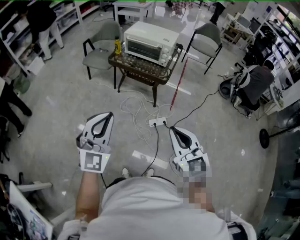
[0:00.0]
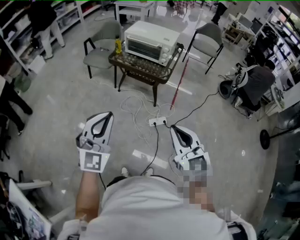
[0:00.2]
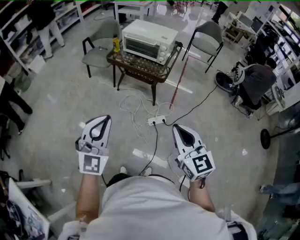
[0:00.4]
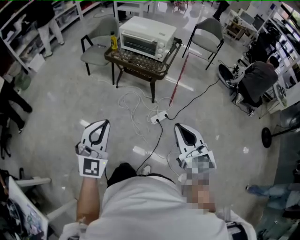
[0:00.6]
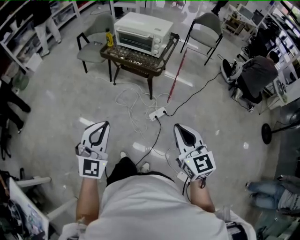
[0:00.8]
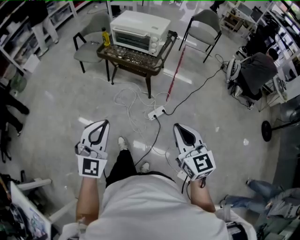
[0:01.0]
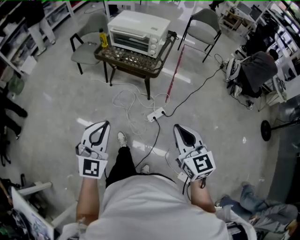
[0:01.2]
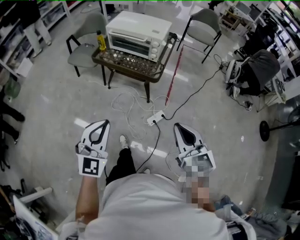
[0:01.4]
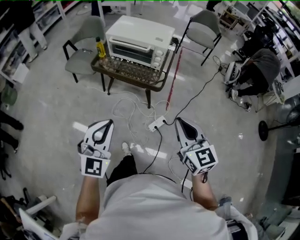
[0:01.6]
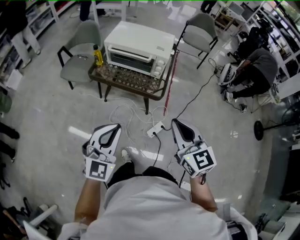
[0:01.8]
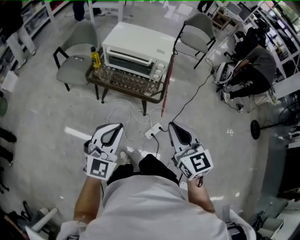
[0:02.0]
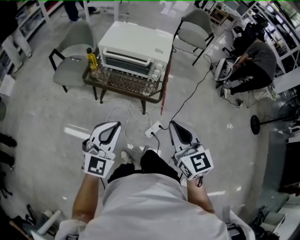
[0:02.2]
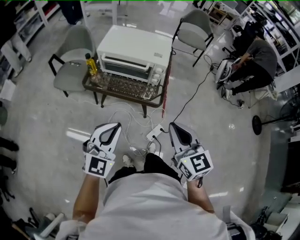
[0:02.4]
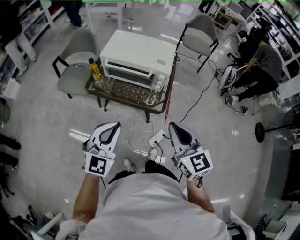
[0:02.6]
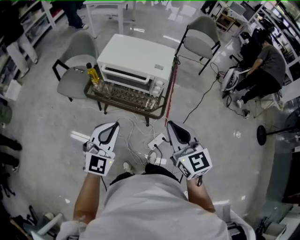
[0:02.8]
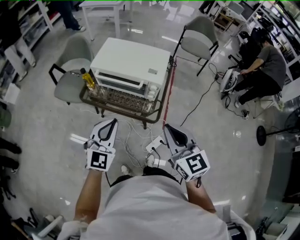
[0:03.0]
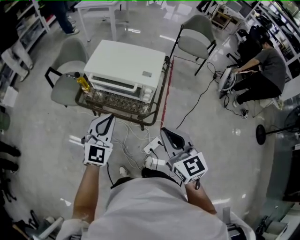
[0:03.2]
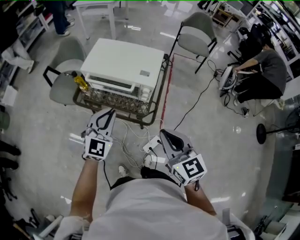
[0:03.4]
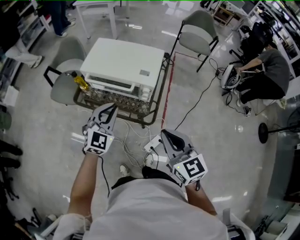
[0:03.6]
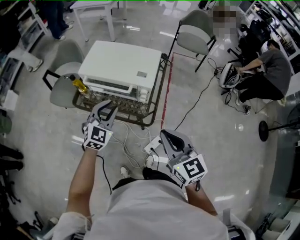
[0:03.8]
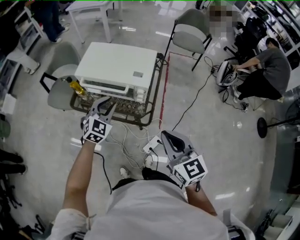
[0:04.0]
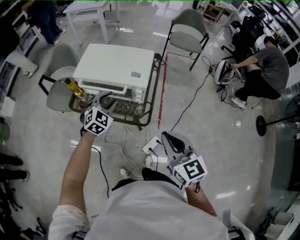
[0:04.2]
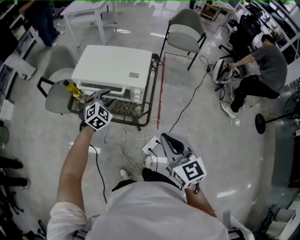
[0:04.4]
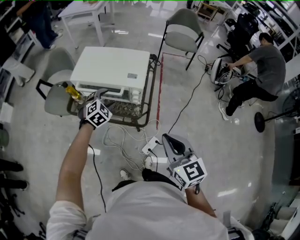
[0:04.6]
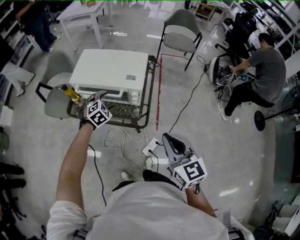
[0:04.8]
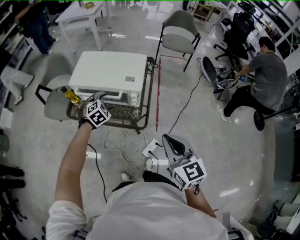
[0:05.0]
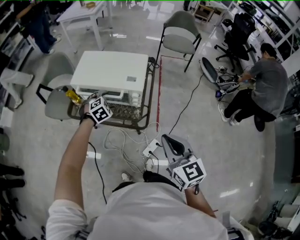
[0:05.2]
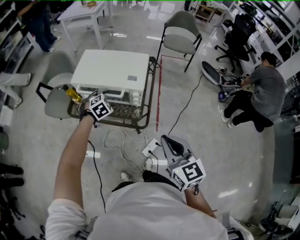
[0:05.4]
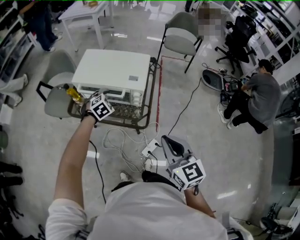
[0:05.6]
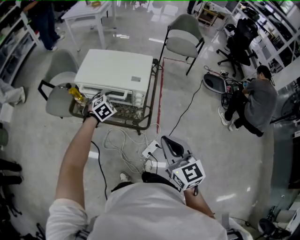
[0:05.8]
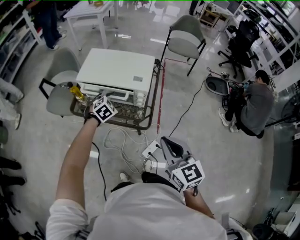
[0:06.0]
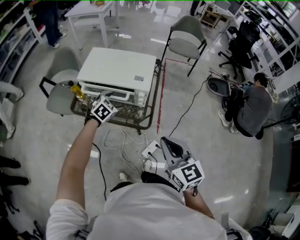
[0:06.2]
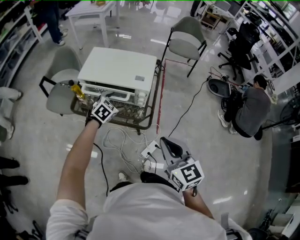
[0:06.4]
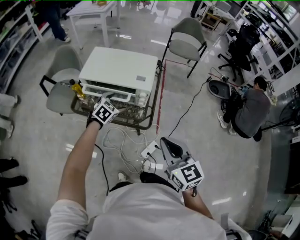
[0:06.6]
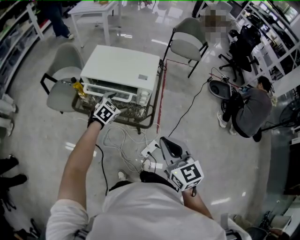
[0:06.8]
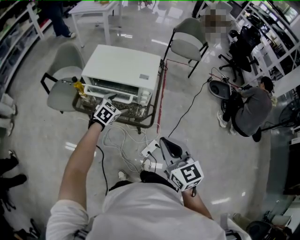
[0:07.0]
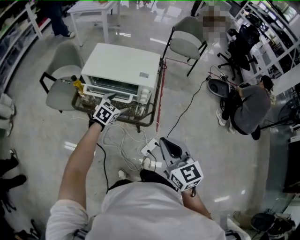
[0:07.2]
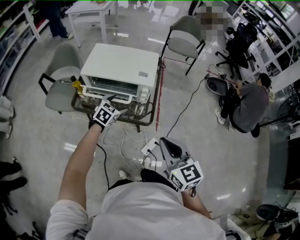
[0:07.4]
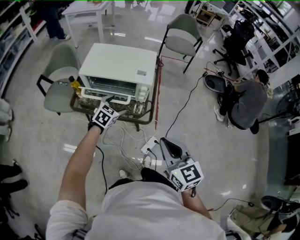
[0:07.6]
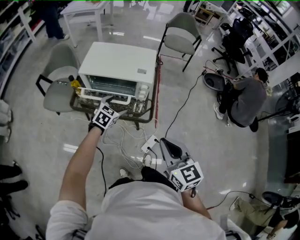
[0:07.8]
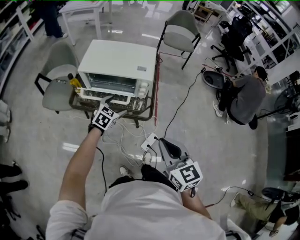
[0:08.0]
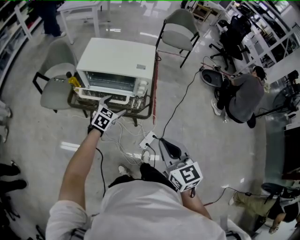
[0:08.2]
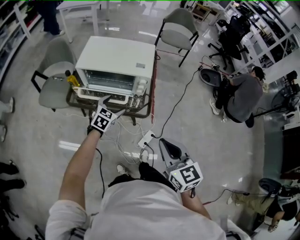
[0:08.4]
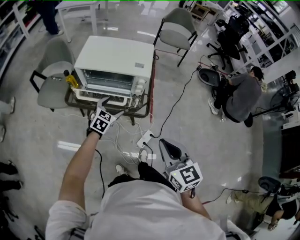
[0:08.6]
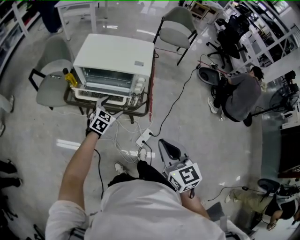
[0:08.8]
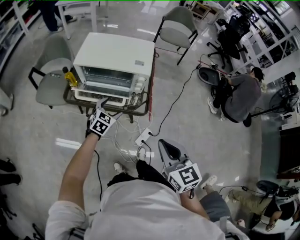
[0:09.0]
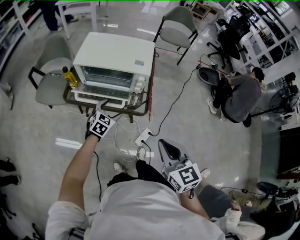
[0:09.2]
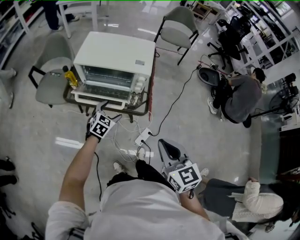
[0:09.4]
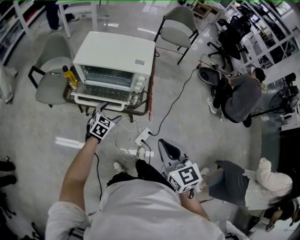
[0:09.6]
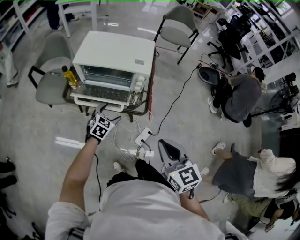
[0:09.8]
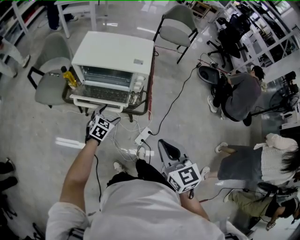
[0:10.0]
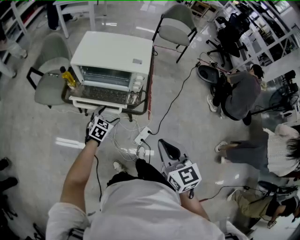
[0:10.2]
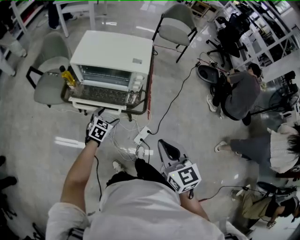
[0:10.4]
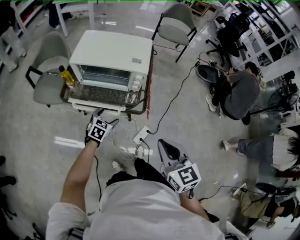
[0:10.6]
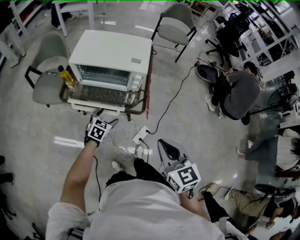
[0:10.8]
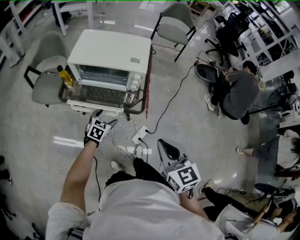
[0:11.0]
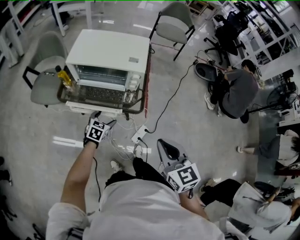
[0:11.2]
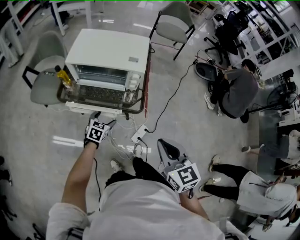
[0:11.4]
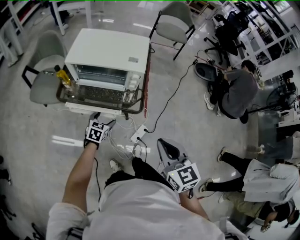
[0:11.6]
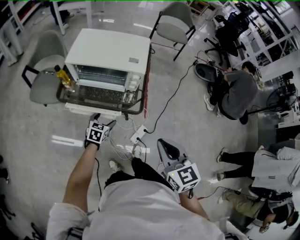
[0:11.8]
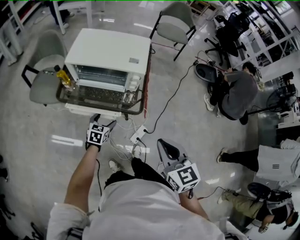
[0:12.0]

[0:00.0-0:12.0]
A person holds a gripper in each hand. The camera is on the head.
0.0 to 1.6 s: The right gripper goes roughly 30 cm forward. The left gripper is displaced forward and downward by approximately 25 cm.
1.6 to 3.0 s: The grippers both shift forward by roughly 25 cm.
3.0 to 4.4 s: The left gripper travels forward and downward by some 25 cm, turns by approximately 40 degrees, and opens its fingers. The right gripper goes roughly 5 cm to the right.
4.4 to 6.0 s: The left gripper opens its fingers.
6.0 to 7.6 s: The right gripper ends up about 5 cm from where it was. Meanwhile the left gripper is displaced backward by approximately 5 cm, and changes its angle by some 20 degrees.
7.6 to 9.0 s: The left gripper moves about 5 cm.
9.0 to 10.4 s: The left gripper heads downward, covering some 5 cm.
10.4 to 12.0 s: There are only small adjustments of the grippers.

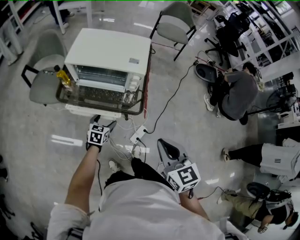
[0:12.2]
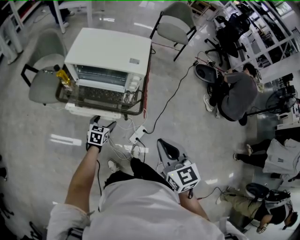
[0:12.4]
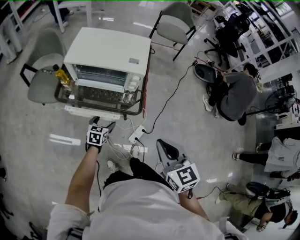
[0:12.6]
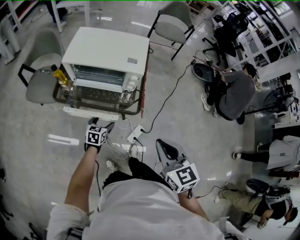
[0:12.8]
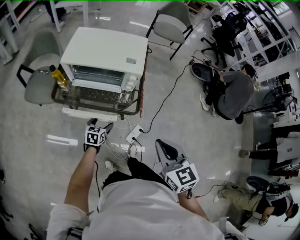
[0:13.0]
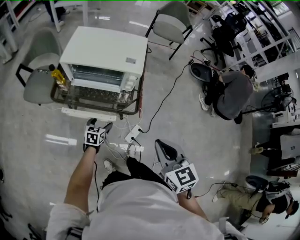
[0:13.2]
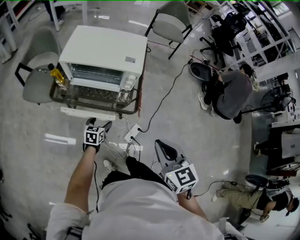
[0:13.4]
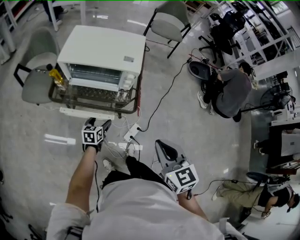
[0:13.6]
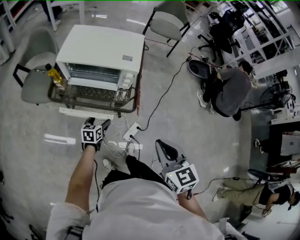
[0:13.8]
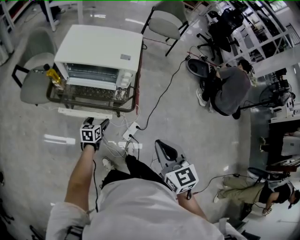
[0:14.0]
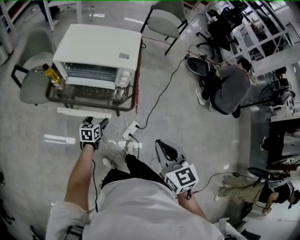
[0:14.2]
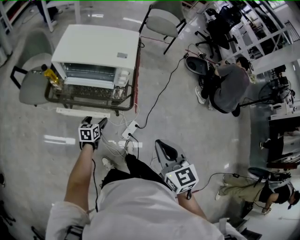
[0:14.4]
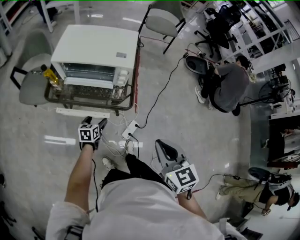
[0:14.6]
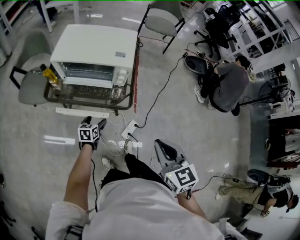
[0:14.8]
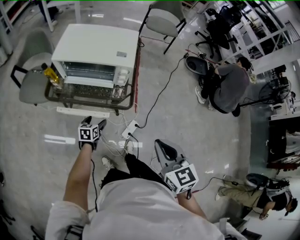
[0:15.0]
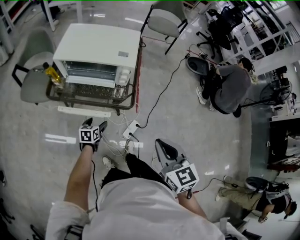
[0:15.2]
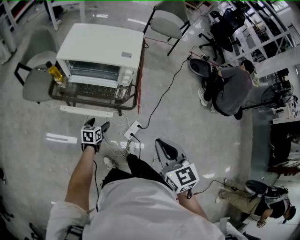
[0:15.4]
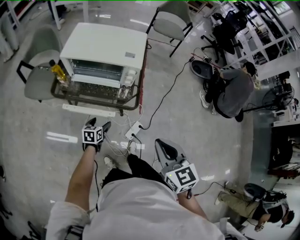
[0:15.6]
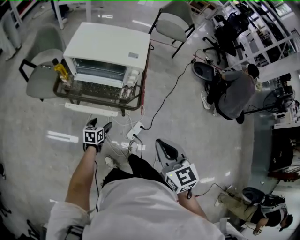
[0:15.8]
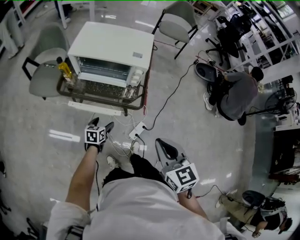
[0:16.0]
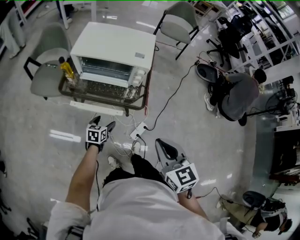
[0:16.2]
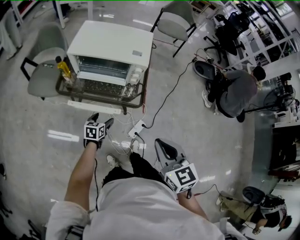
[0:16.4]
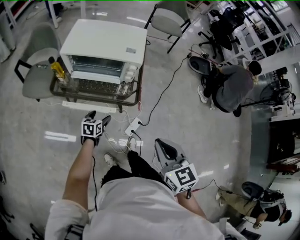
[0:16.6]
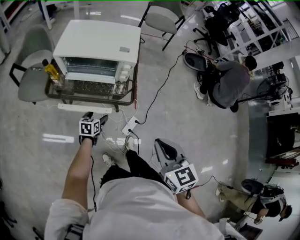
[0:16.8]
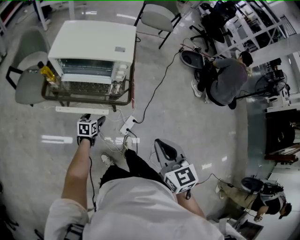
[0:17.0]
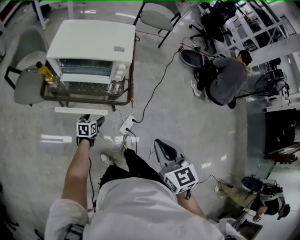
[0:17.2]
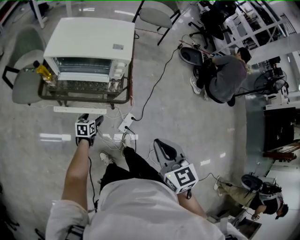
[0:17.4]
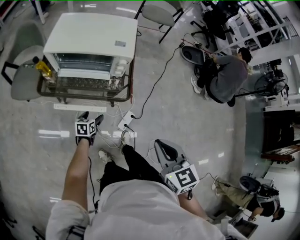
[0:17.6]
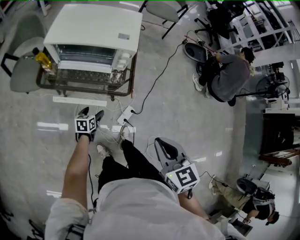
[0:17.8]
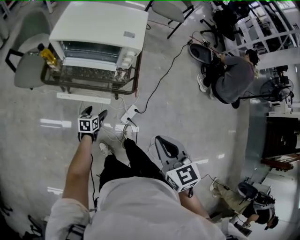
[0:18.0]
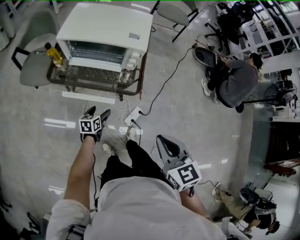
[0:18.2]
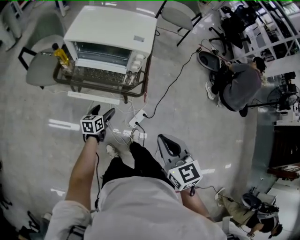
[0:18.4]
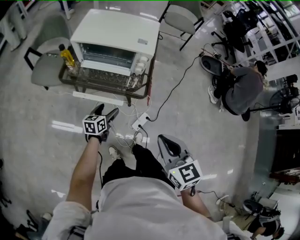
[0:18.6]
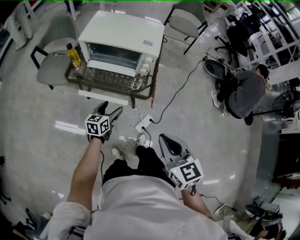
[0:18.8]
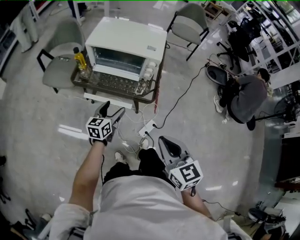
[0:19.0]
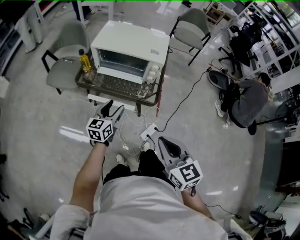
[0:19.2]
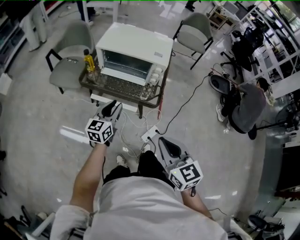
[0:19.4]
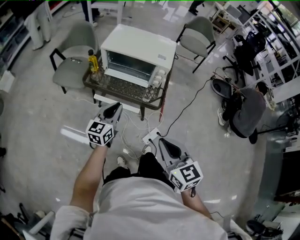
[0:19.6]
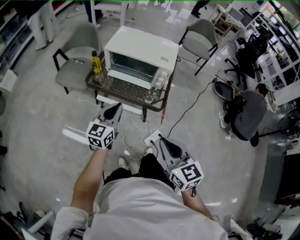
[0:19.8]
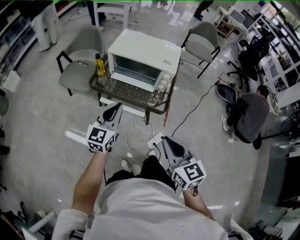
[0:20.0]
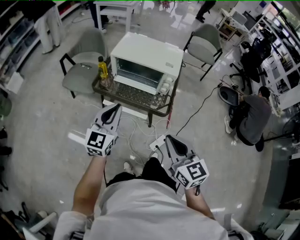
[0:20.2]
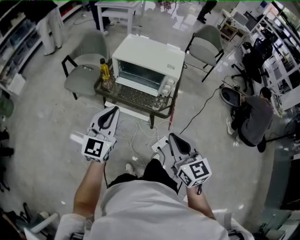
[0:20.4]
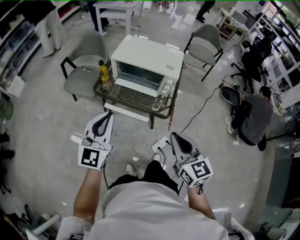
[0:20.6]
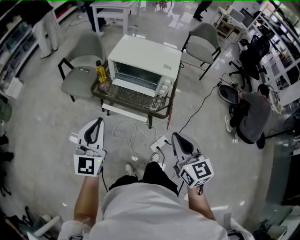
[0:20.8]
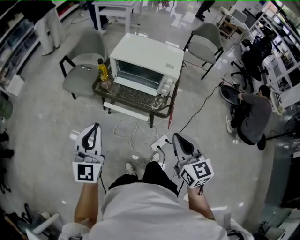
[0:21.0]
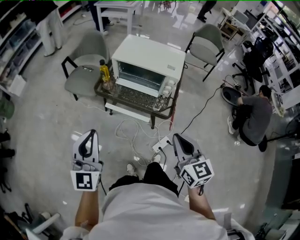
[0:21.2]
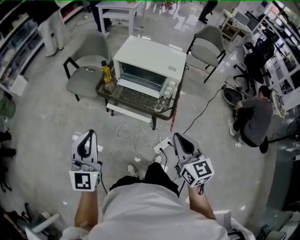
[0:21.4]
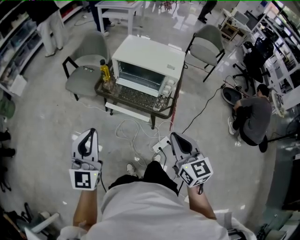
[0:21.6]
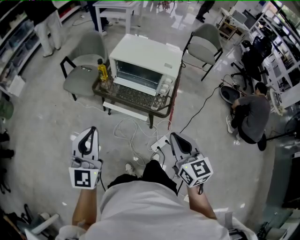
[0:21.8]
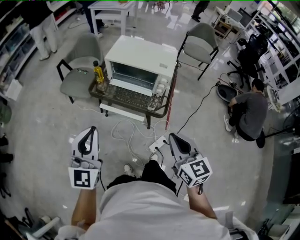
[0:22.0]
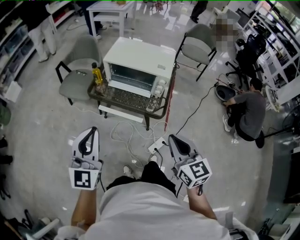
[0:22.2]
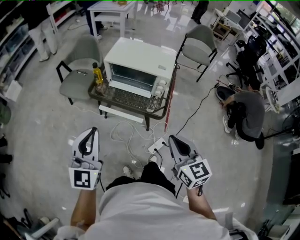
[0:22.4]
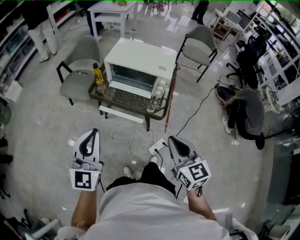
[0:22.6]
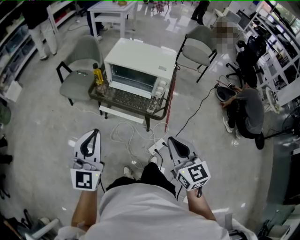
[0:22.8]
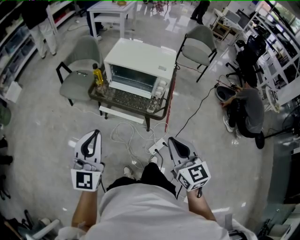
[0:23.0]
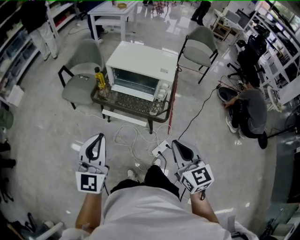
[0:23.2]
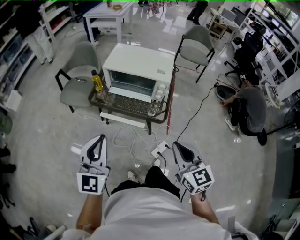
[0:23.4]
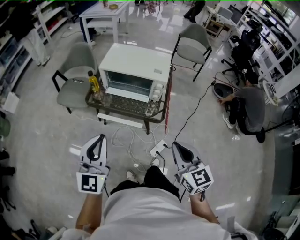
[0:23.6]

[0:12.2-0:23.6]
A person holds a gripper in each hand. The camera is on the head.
12.2 to 13.6 s: The grippers make only small movements.
13.6 to 15.0 s: The grippers move only a little.
15.0 to 16.4 s: The right gripper ends up about 5 cm from where it was.
16.4 to 17.8 s: The left gripper moves downward, some 10 cm.
17.8 to 19.4 s: The left gripper moves upward, some 30 cm, tilts its fingers roughly 30 degrees upward, and closes its fingers. The right gripper moves to the left and backward, about 10 cm.
19.4 to 20.8 s: The left gripper heads upward, to the left and backward, covering about 20 cm, and turns by roughly 30 degrees, while the right gripper shifts by roughly 5 cm.
20.8 to 22.2 s: The left gripper changes place by approximately 5 cm.
22.2 to 23.6 s: The grippers make only small movements.

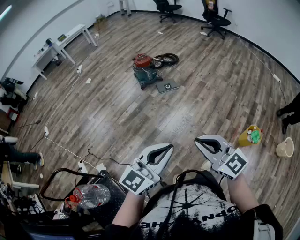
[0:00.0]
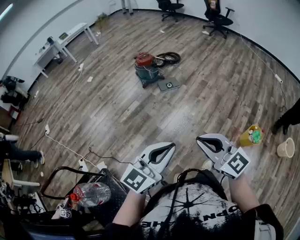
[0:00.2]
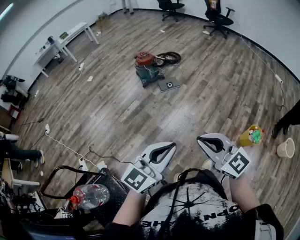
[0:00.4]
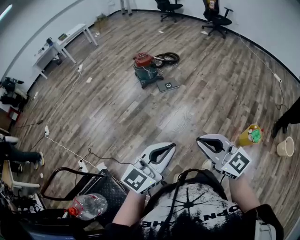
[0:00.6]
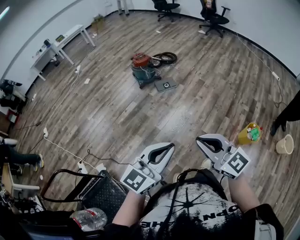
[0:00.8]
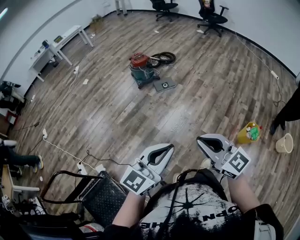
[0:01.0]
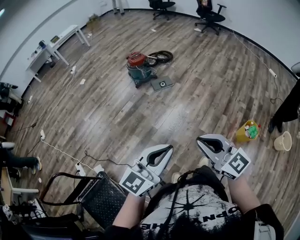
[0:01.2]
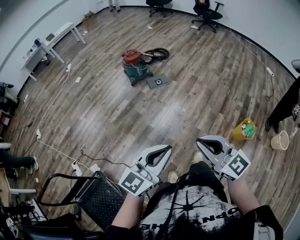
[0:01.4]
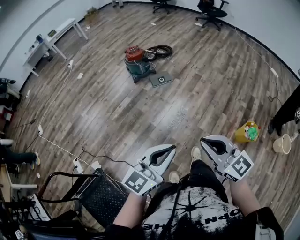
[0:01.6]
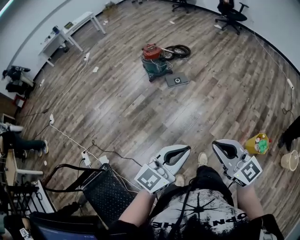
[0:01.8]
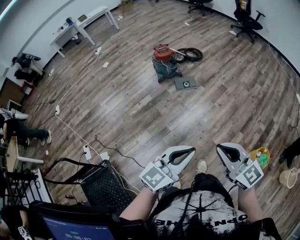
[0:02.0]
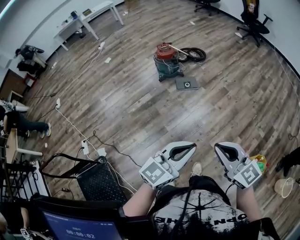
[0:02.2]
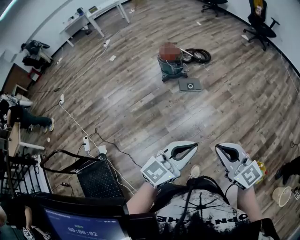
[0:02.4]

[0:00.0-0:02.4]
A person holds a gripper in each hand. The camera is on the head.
0.0 to 1.2 s: The grippers move only a little.
1.2 to 2.4 s: The two grippers go roughly 25 cm forward and to the right.
